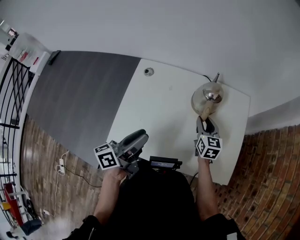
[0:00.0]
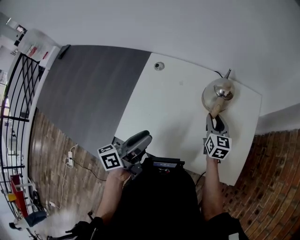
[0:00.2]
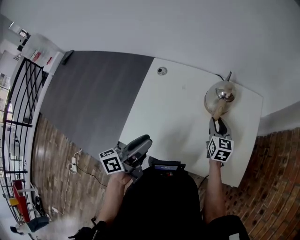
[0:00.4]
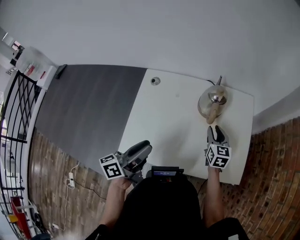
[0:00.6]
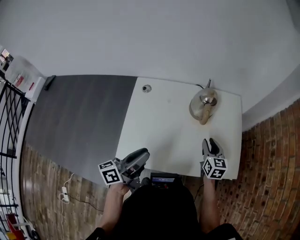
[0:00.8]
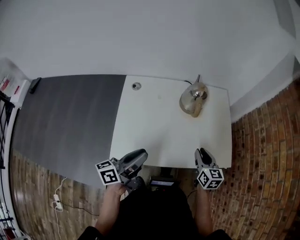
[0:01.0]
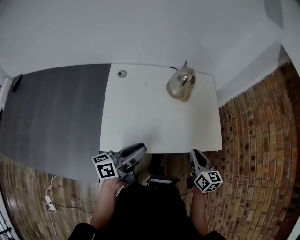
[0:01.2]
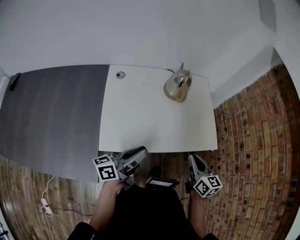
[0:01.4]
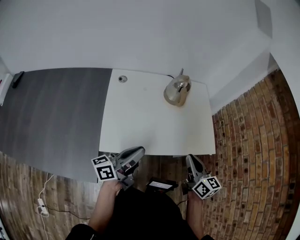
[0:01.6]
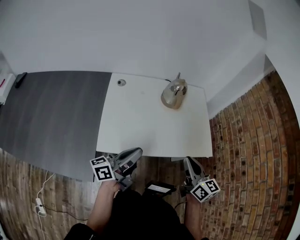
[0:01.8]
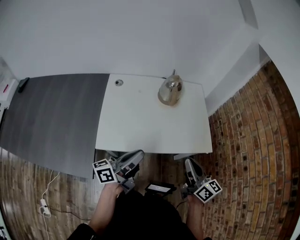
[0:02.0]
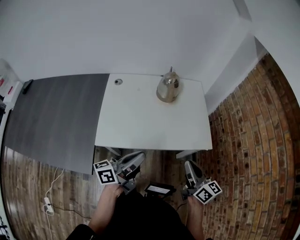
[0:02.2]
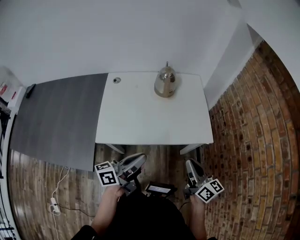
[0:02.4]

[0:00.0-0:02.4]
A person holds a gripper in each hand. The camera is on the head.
0.0 to 1.2 s: The left gripper travels backward by approximately 10 cm, and rotates roughly 30 degrees. Meanwhile the right gripper travels backward by about 25 cm, and closes its fingers.
1.2 to 2.4 s: The right gripper heads backward, to the right and upward, covering approximately 15 cm, and swivels some 30 degrees. The left gripper travels to the right and backward by roughly 15 cm, and closes.

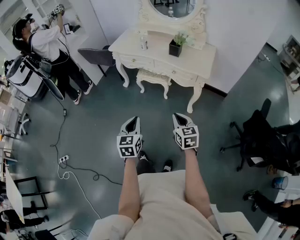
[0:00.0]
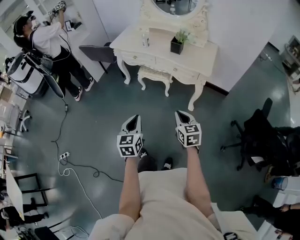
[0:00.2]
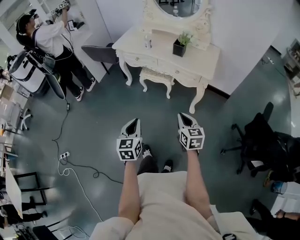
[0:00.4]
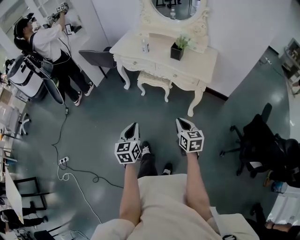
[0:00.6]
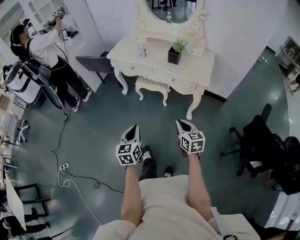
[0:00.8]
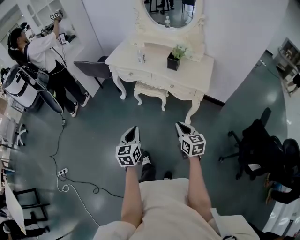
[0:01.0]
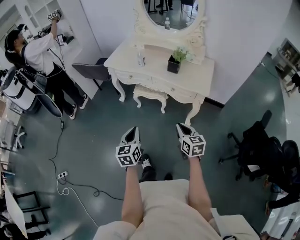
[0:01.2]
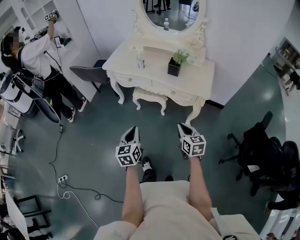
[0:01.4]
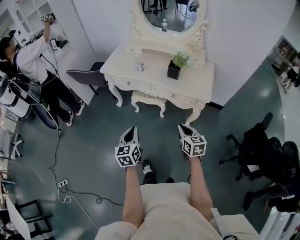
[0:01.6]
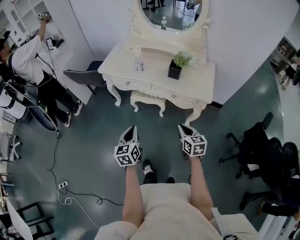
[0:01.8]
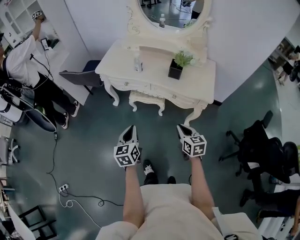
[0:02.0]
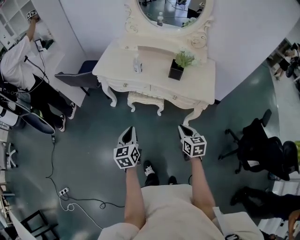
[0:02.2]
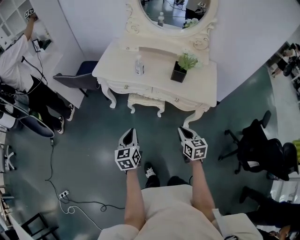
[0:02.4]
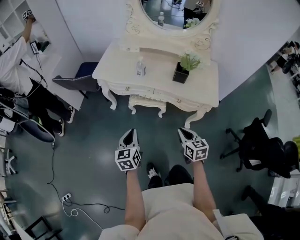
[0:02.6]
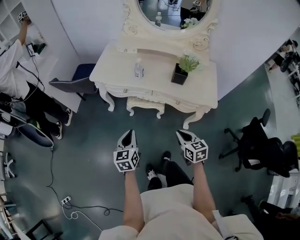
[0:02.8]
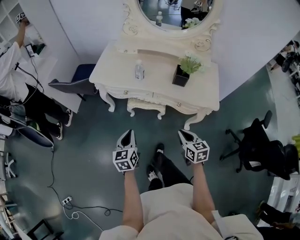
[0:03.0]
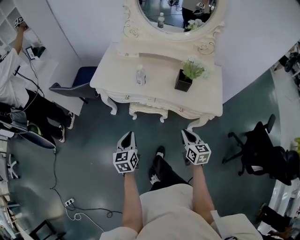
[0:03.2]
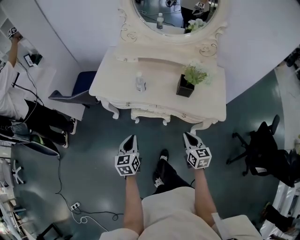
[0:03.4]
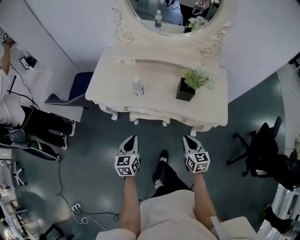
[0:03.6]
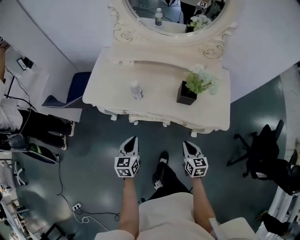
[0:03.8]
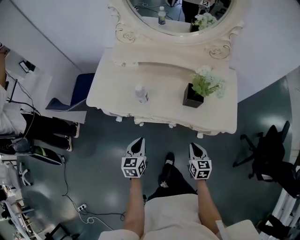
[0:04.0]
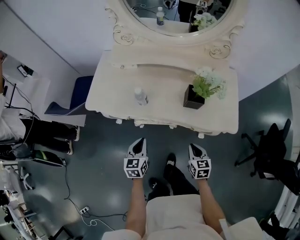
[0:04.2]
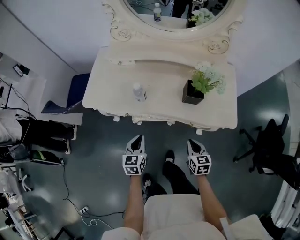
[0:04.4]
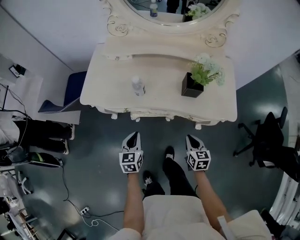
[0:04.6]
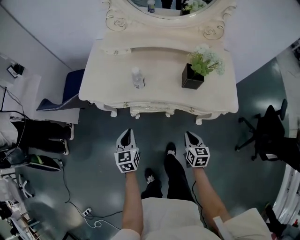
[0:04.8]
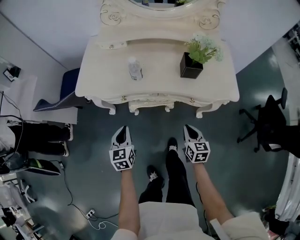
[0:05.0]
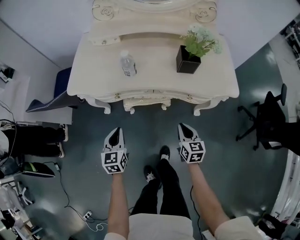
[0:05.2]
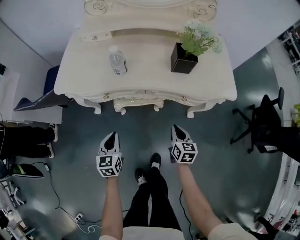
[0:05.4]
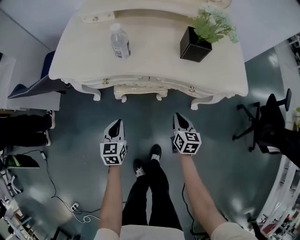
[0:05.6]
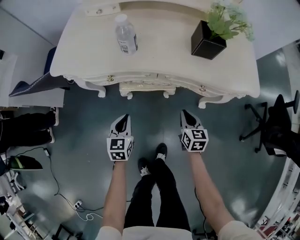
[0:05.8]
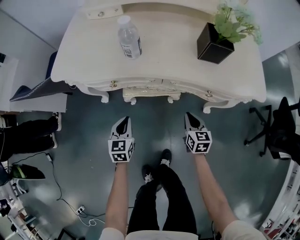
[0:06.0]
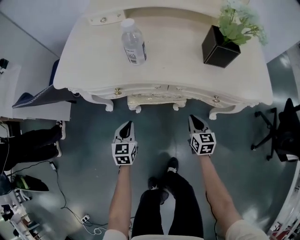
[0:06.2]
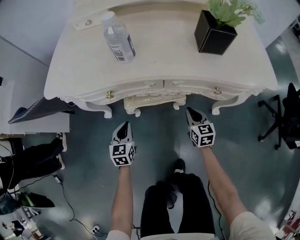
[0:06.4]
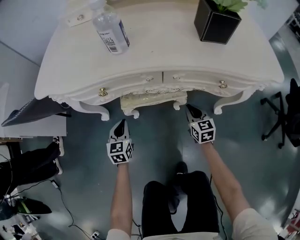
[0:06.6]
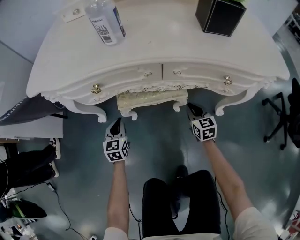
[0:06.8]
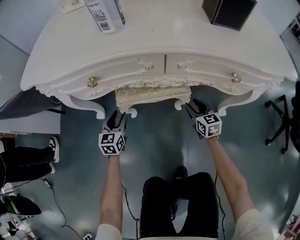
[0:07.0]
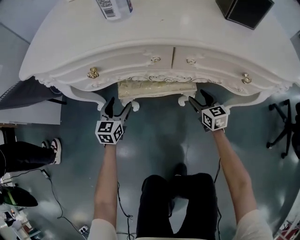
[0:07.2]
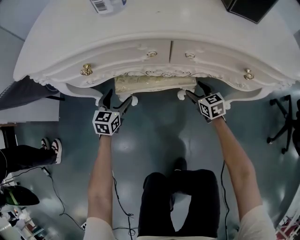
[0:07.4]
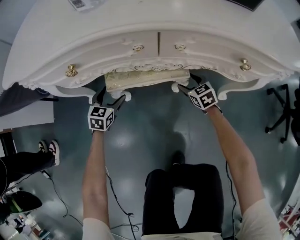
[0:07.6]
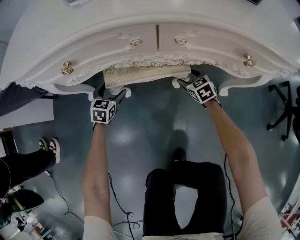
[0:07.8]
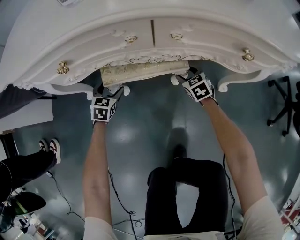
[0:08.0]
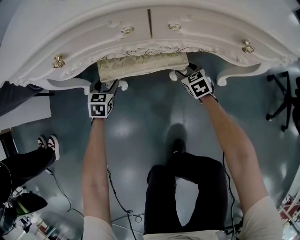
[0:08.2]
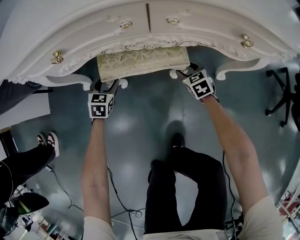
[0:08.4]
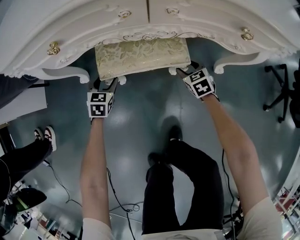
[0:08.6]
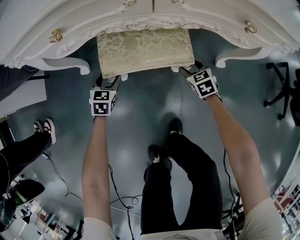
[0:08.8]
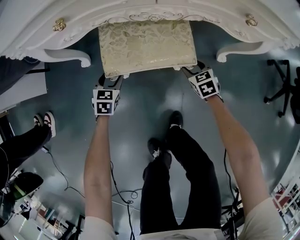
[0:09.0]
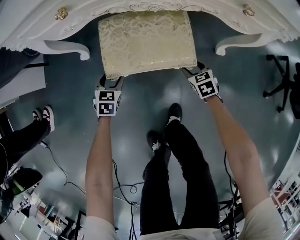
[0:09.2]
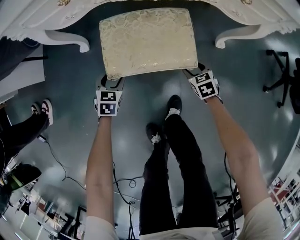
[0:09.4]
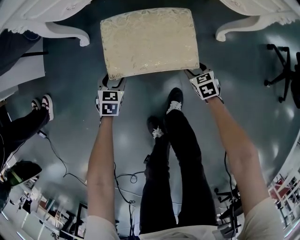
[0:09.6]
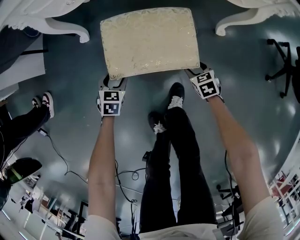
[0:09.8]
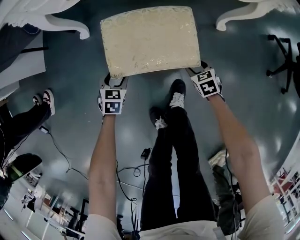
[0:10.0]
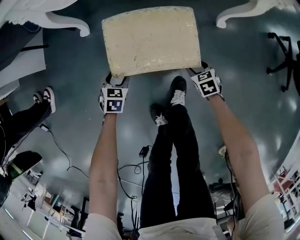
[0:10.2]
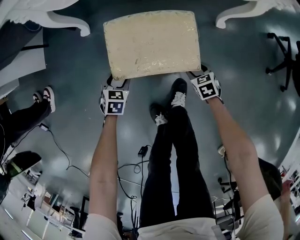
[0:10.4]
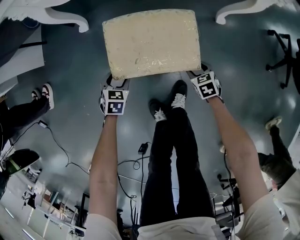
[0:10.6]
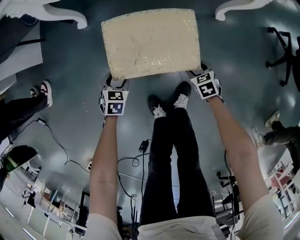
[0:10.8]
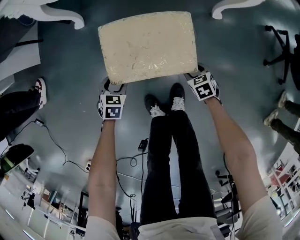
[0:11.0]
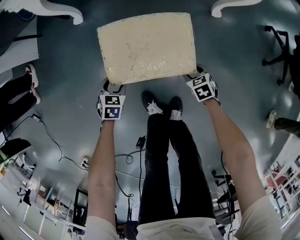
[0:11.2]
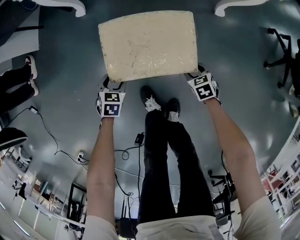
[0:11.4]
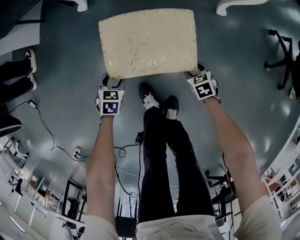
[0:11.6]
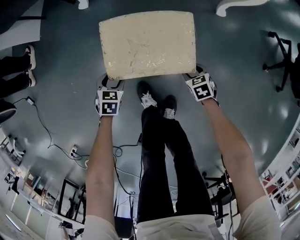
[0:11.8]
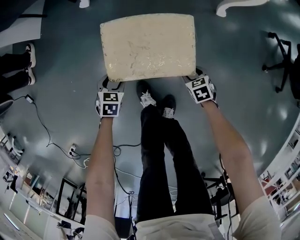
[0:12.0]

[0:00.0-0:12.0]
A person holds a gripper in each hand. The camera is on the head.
0.0 to 1.6 s: Both grippers move forward, roughly 20 cm.
1.6 to 3.0 s: The two grippers go some 15 cm forward and to the left.
3.0 to 4.4 s: Both grippers travel together forward and downward, about 20 cm.
4.4 to 6.0 s: The two grippers go roughly 20 cm downward.
6.0 to 7.6 s: Both grippers travel together downward and forward, some 30 cm. The right gripper rotates roughly 30 degrees, and opens its fingers. Meanwhile the left gripper turns by roughly 20 degrees, and opens its fingers.
7.6 to 9.0 s: Both grippers move backward, some 10 cm.
9.0 to 10.4 s: The grippers both shift backward by approximately 25 cm.
10.4 to 12.0 s: Both grippers move backward, approximately 15 cm.

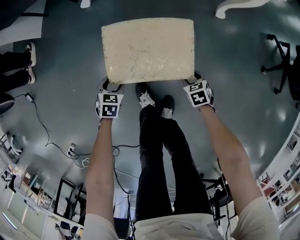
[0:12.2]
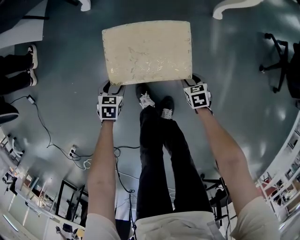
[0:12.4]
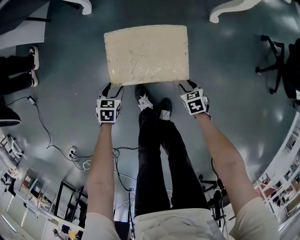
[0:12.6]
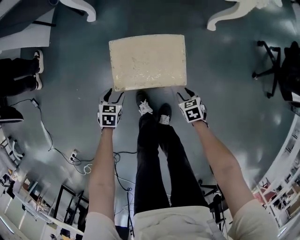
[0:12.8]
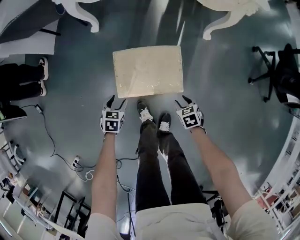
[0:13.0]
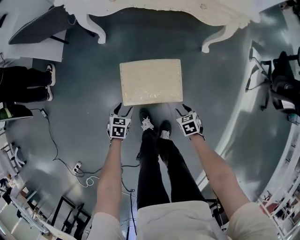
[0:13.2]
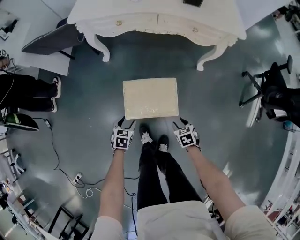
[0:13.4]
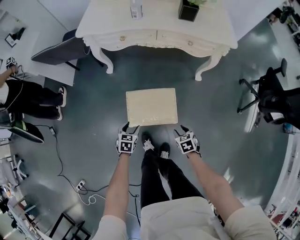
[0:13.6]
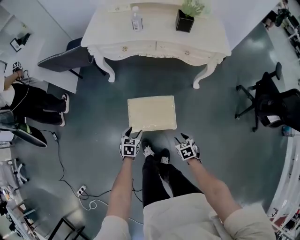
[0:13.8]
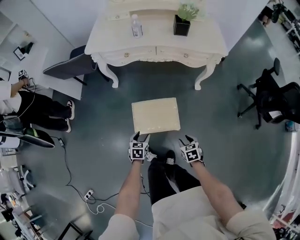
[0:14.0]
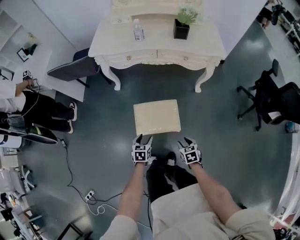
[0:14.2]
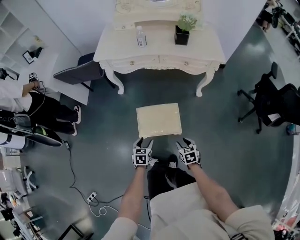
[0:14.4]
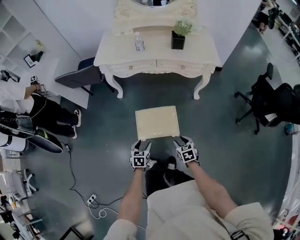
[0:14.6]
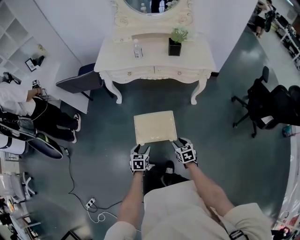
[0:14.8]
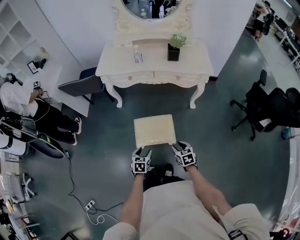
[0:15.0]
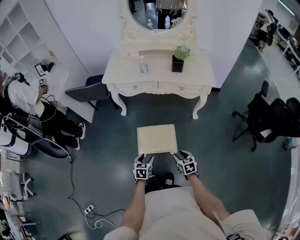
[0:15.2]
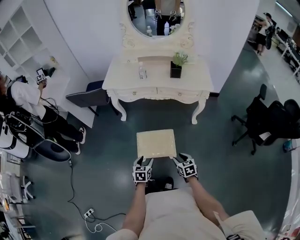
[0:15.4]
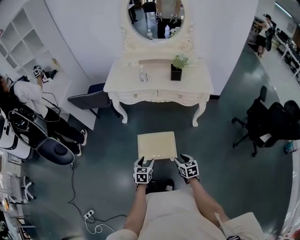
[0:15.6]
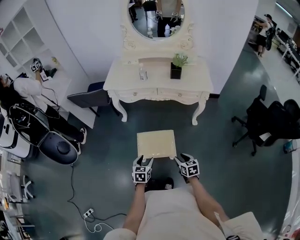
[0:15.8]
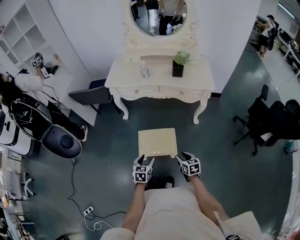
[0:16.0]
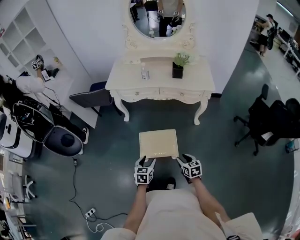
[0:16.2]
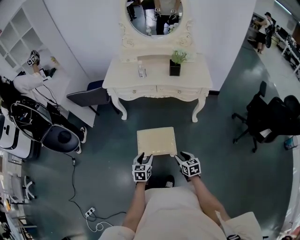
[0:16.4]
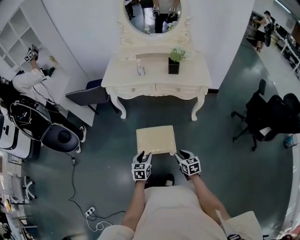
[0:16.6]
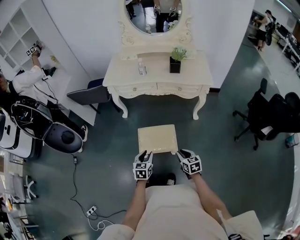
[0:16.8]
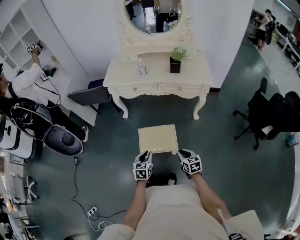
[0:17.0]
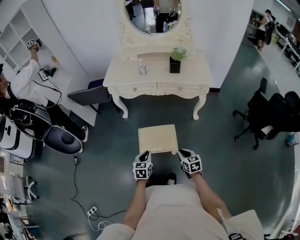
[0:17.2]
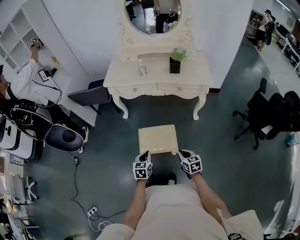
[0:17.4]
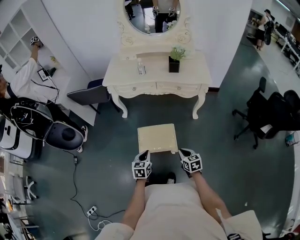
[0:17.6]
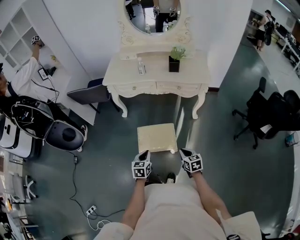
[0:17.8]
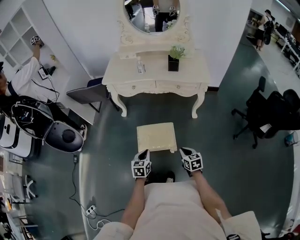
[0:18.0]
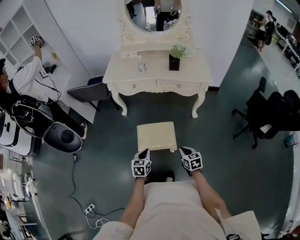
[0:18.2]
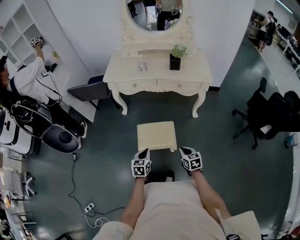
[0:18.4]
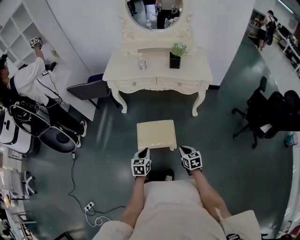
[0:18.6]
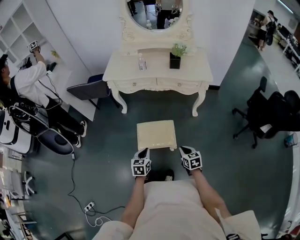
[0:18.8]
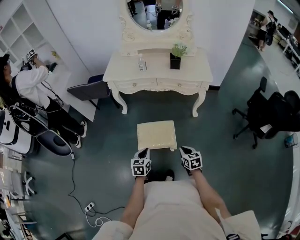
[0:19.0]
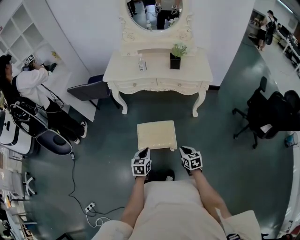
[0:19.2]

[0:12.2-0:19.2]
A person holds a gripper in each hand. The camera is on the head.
12.2 to 13.6 s: The grippers both shift upward by some 25 cm.
13.6 to 15.0 s: The right gripper heads upward, covering roughly 20 cm. The left gripper is displaced upward and backward by about 20 cm.
15.0 to 16.4 s: The right gripper ends up approximately 5 cm from where it was, while the left gripper moves upward, roughly 10 cm.
16.4 to 17.8 s: The right gripper closes its fingers. The left gripper closes up.
17.8 to 19.2 s: Neither gripper changes place.

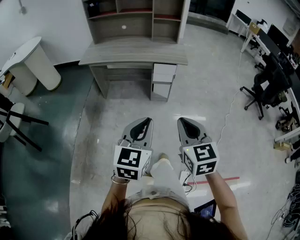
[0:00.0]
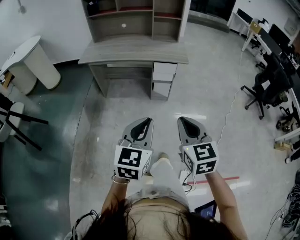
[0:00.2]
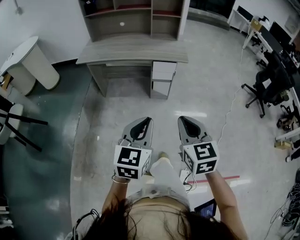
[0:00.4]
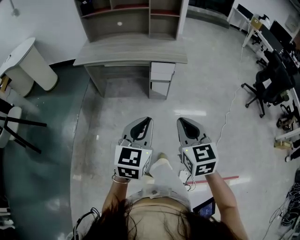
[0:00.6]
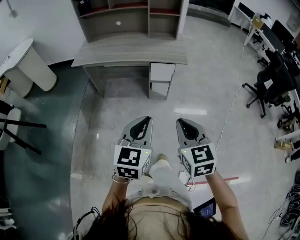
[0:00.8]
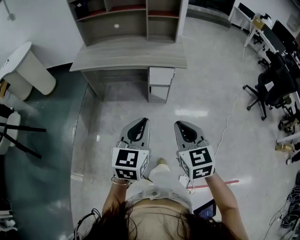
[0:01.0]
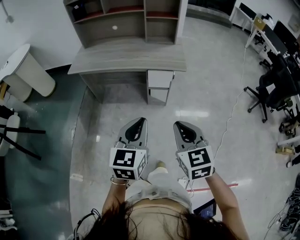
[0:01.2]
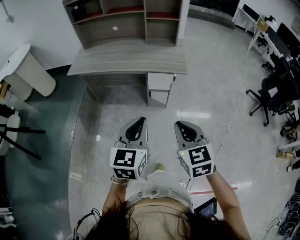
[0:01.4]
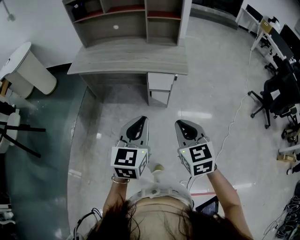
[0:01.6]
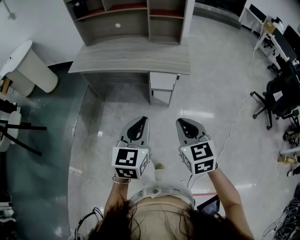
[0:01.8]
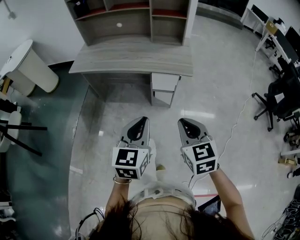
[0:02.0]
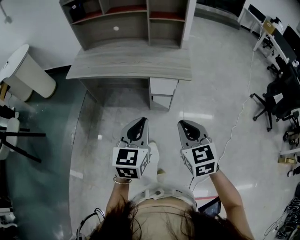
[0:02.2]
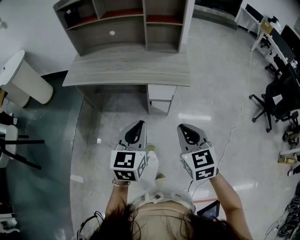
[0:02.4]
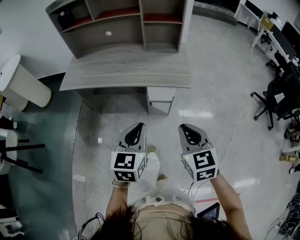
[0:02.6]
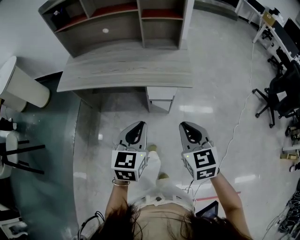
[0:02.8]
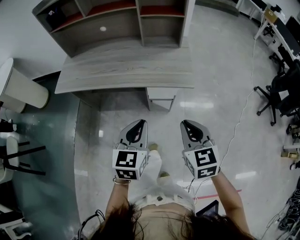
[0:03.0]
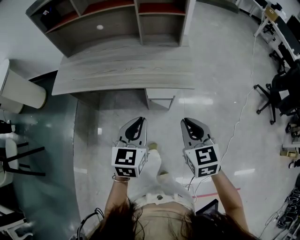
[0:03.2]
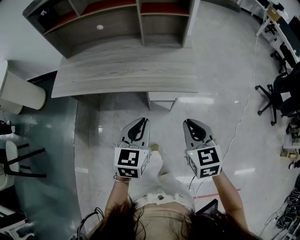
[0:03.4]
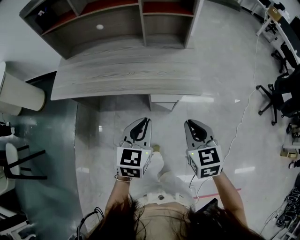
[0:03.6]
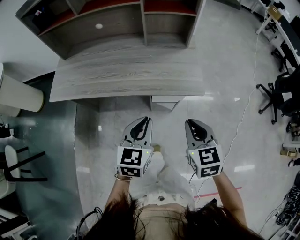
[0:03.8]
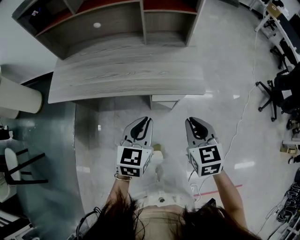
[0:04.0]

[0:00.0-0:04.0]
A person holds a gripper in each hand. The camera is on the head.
0.0 to 1.4 s: The two grippers go approximately 20 cm forward.
1.4 to 2.6 s: Both grippers travel together forward, about 15 cm.
2.6 to 4.0 s: The left gripper moves forward and downward, about 15 cm, while the right gripper travels forward by roughly 15 cm.
